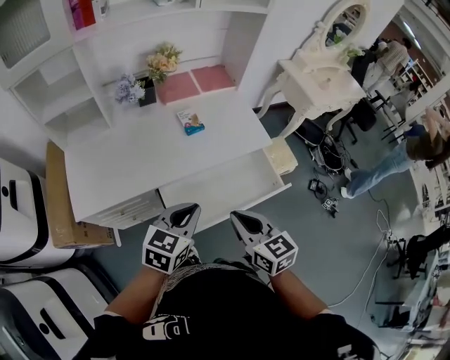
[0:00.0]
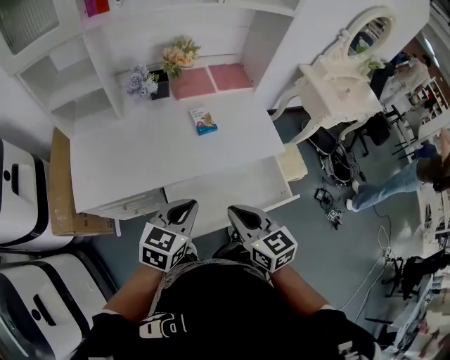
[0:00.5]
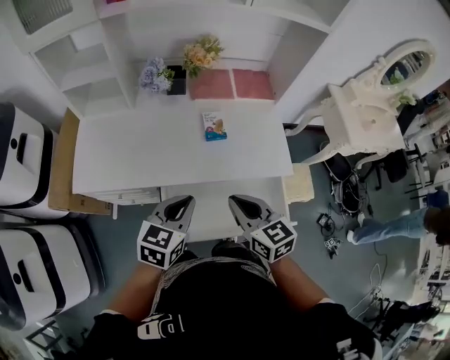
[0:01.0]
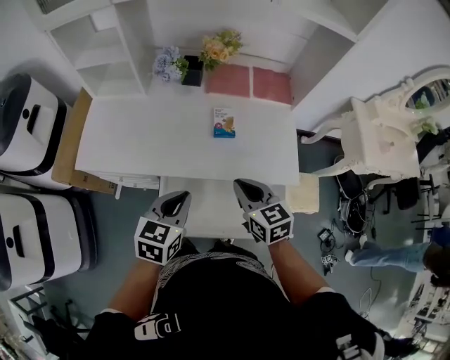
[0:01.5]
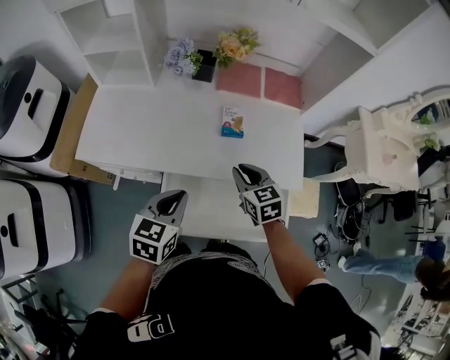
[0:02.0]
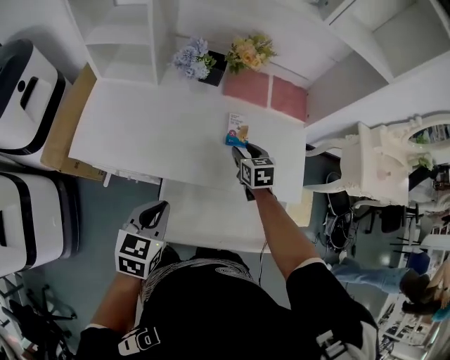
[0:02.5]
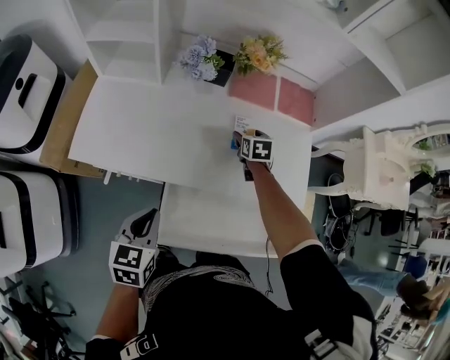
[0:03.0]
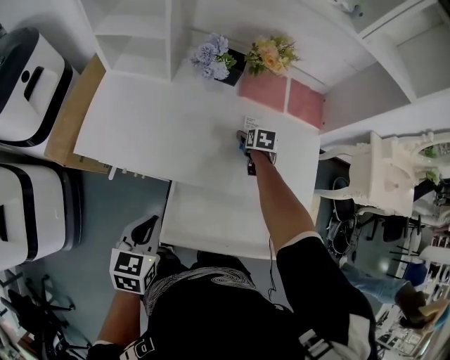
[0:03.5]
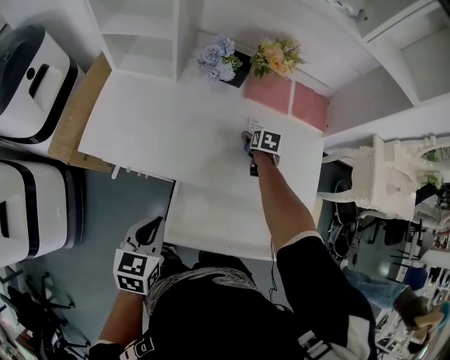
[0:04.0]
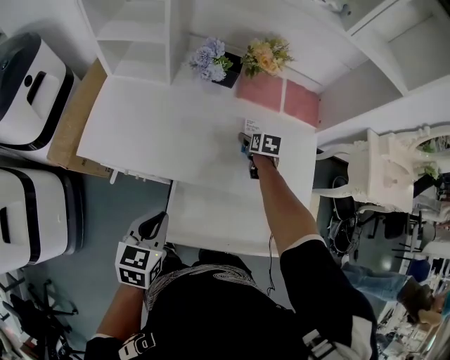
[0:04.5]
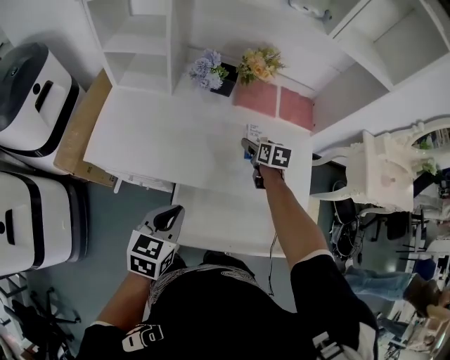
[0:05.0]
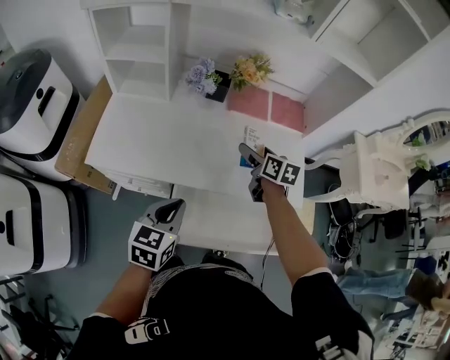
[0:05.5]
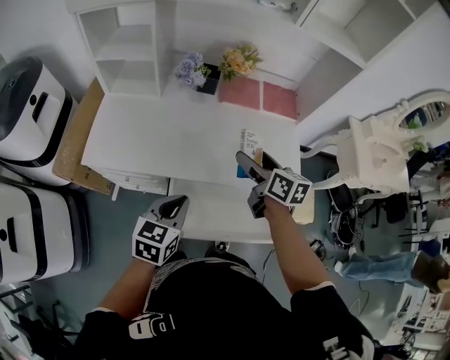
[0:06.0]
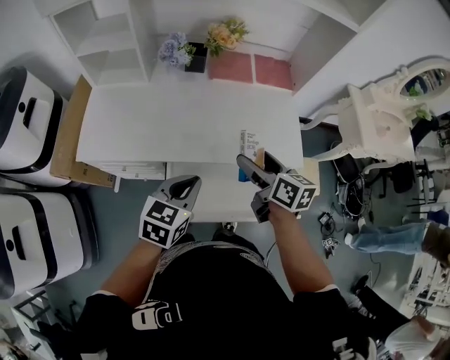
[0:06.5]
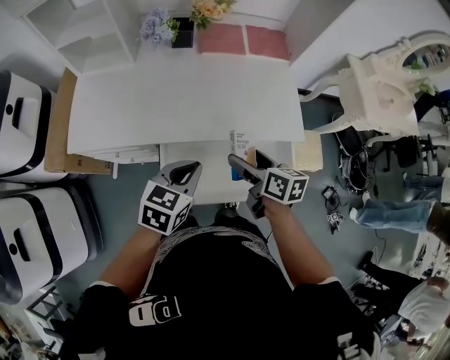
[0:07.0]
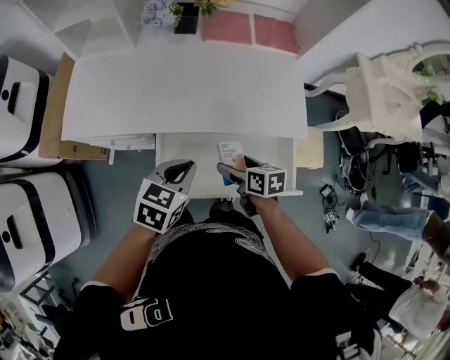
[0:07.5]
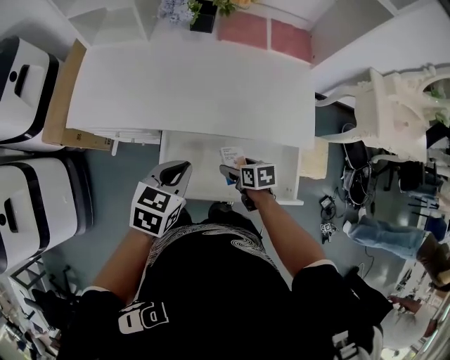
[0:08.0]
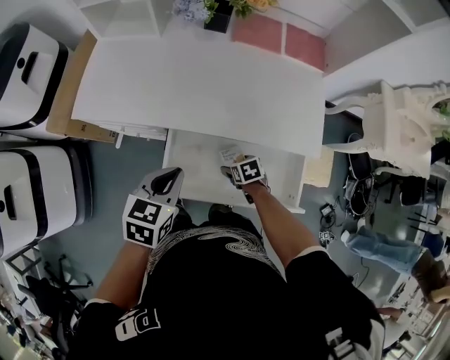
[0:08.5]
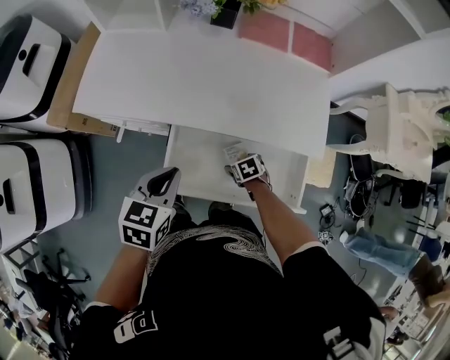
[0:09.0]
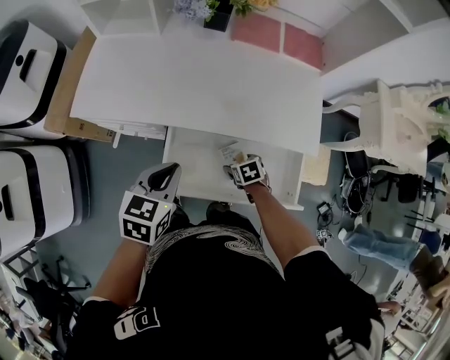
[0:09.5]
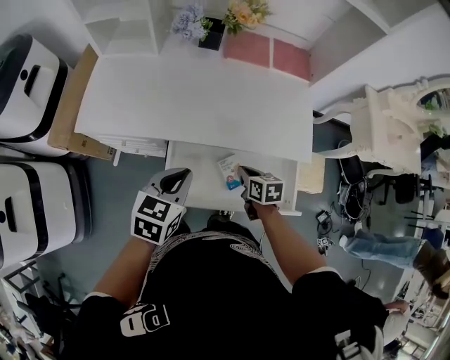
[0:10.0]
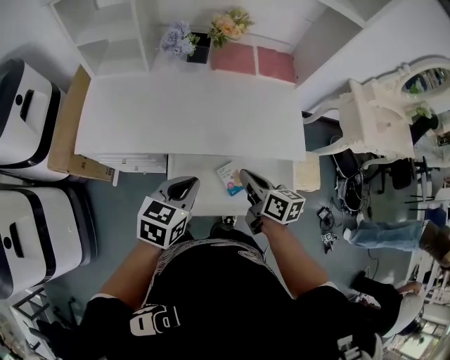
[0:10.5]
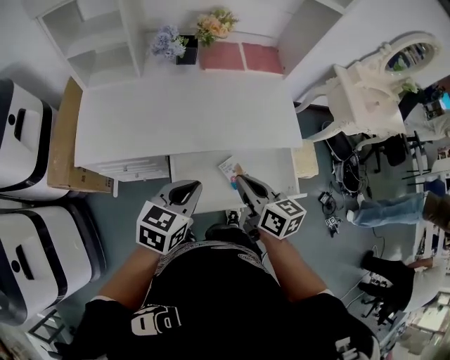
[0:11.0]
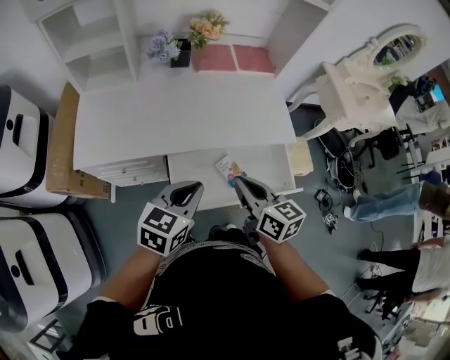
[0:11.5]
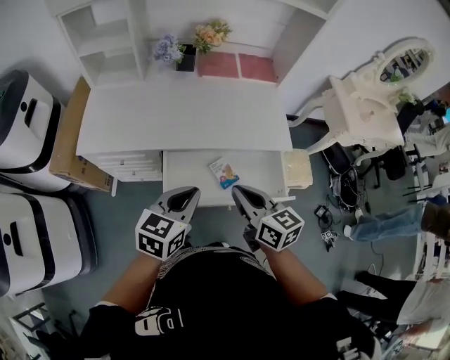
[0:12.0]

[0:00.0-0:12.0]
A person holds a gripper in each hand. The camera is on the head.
0:00.0 to 0:02.0: The right gripper ends up about 25 cm from where it was, and turns by about 30 degrees, while the left gripper changes place by roughly 10 cm, and rotates about 40 degrees.
0:02.0 to 0:04.0: The right gripper goes roughly 30 cm forward and downward, rotates roughly 30 degrees, and opens, while the left gripper heads to the left, covering some 10 cm.
0:04.0 to 0:06.0: The left gripper goes some 10 cm to the right and upward. The right gripper moves upward and backward, some 30 cm, and angles its fingers upward, by about 40 degrees.
0:06.0 to 0:08.0: The right gripper goes some 30 cm downward and backward, and tips its fingers downward by some 30 degrees, while the left gripper heads downward, covering about 5 cm.
0:08.0 to 0:10.0: The right gripper moves approximately 10 cm downward and comes back, and closes its fingers.
0:10.0 to 0:12.0: The right gripper travels upward and backward by about 25 cm, and swivels approximately 30 degrees. Meanwhile the left gripper travels backward and upward by some 10 cm.

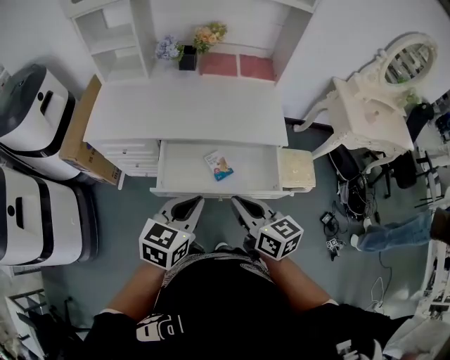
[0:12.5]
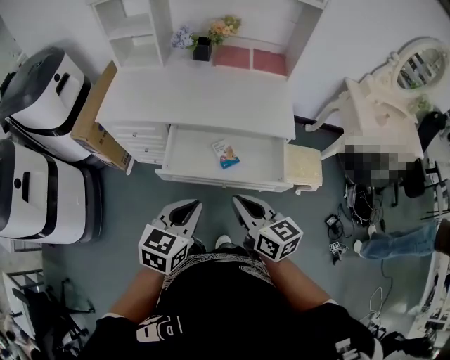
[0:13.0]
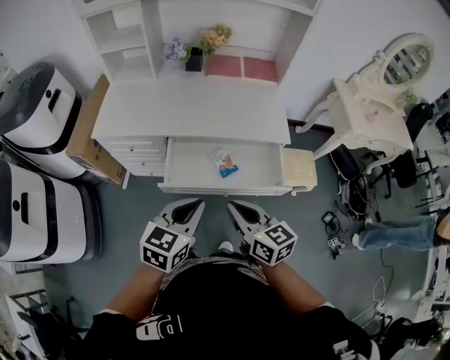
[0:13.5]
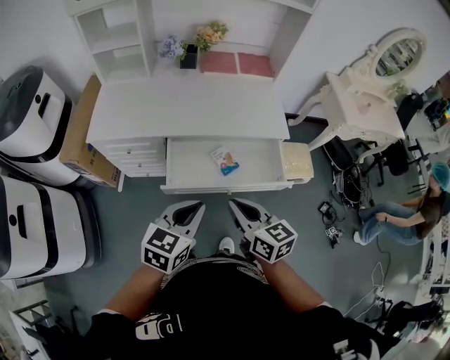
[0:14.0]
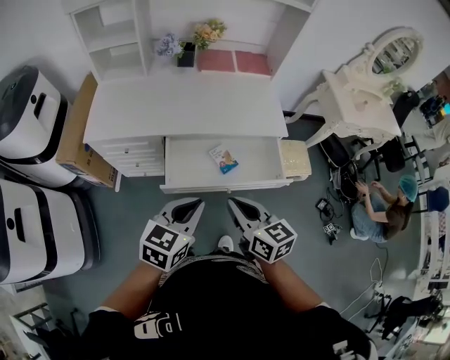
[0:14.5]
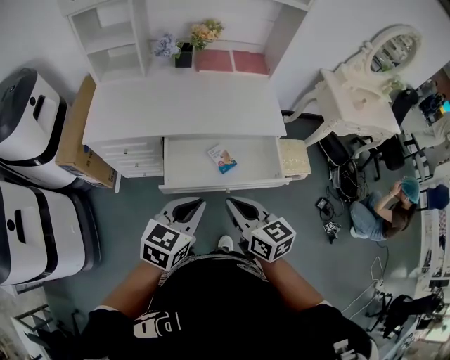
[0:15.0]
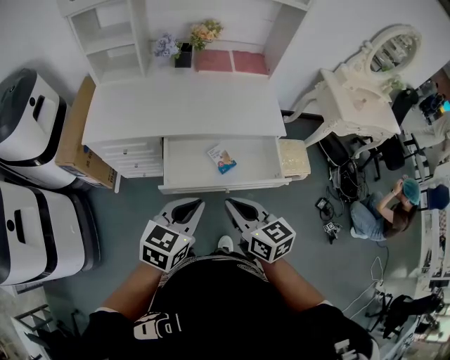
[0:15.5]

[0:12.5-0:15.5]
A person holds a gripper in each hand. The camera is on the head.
0:12.5 to 0:14.0: Both grippers move to the left, some 5 cm.
0:14.0 to 0:15.5: Both grippers stay put.

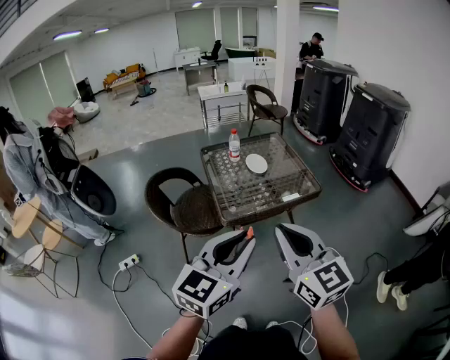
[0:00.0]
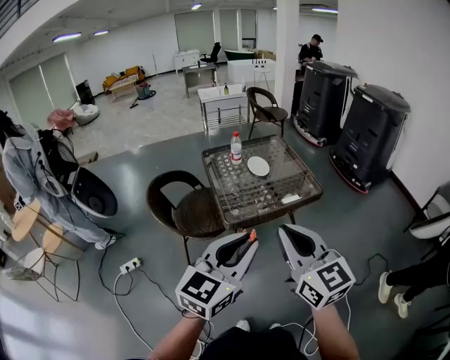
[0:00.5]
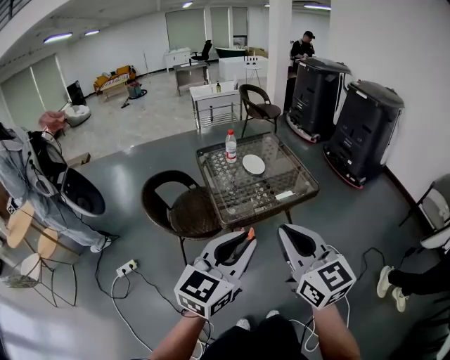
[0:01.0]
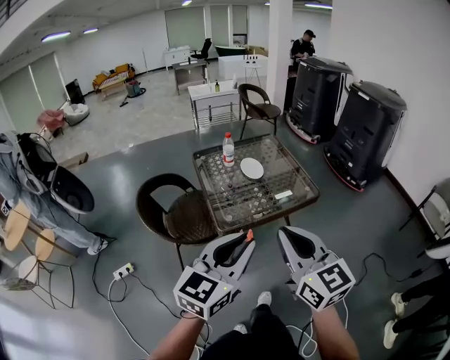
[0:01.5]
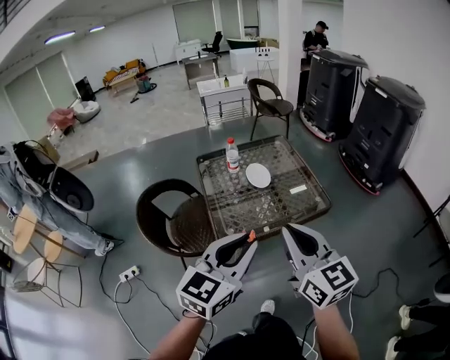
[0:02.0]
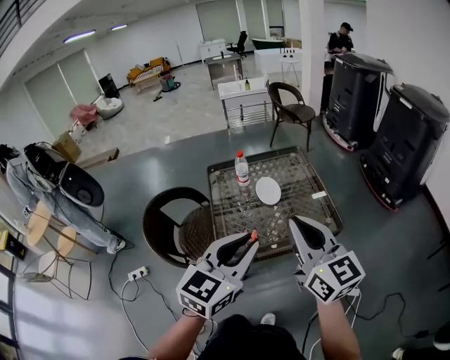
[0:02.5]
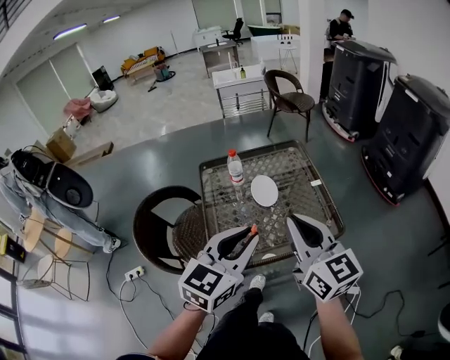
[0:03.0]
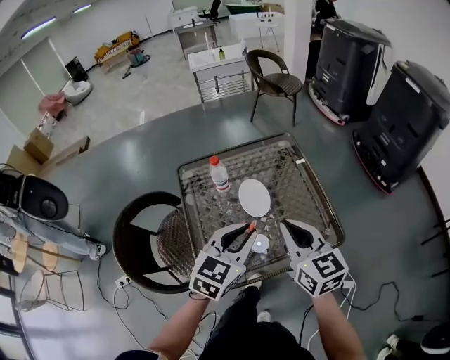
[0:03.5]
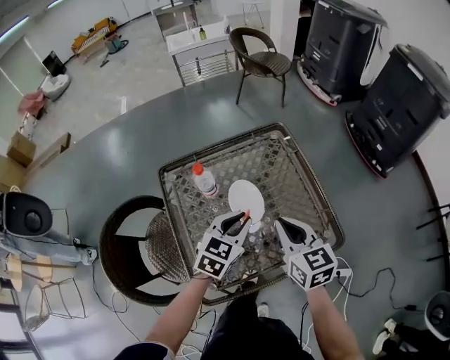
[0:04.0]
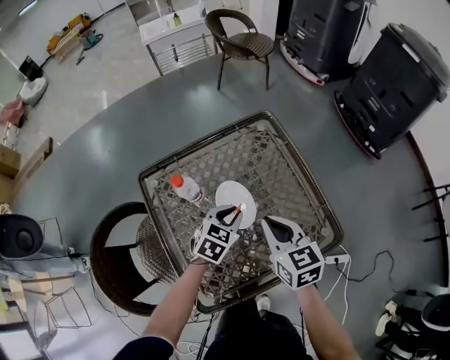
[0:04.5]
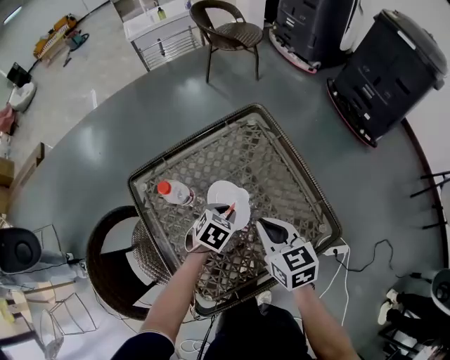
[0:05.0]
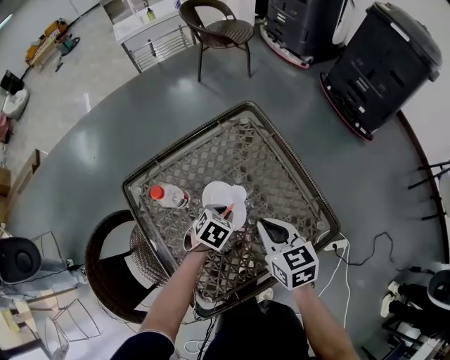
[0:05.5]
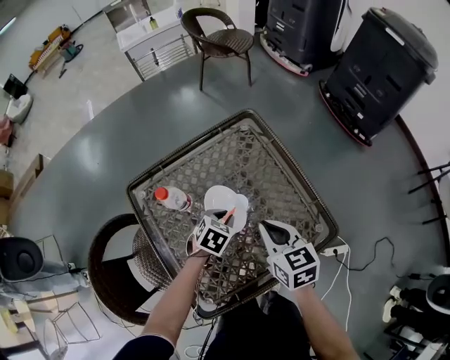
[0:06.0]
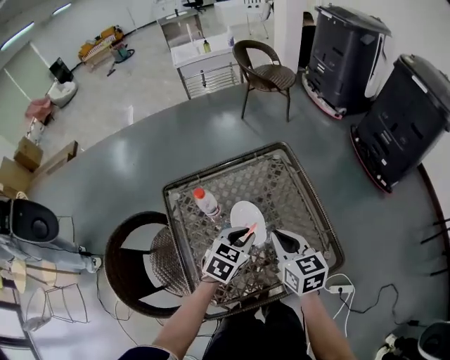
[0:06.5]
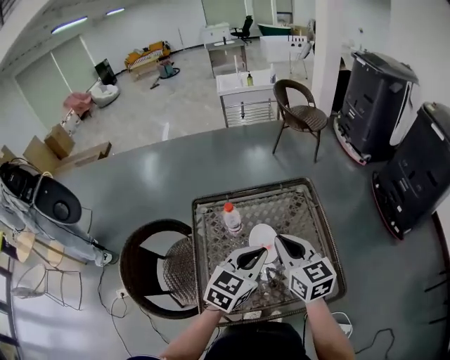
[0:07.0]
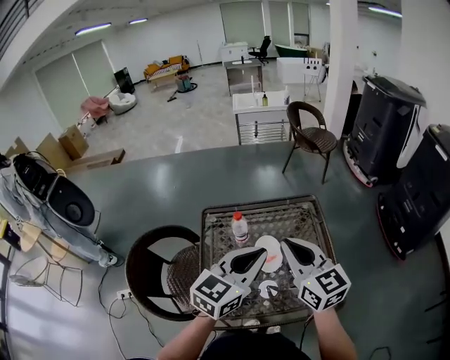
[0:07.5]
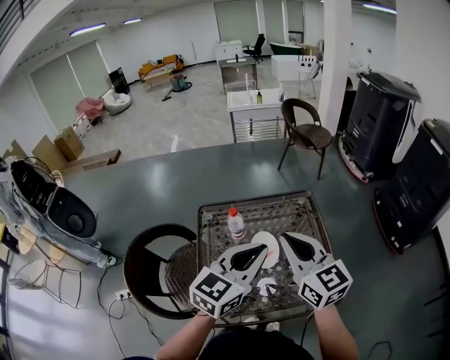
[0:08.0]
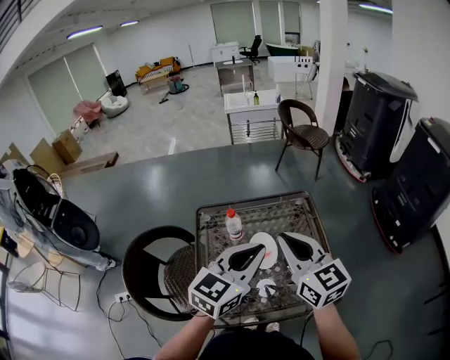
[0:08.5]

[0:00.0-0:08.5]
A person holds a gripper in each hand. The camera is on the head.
0:00.0 to 0:02.0: The grippers both shift forward by roughly 15 cm.
0:02.0 to 0:04.0: Both grippers move forward and downward, approximately 50 cm. The right gripper changes its angle by roughly 20 degrees. The left gripper changes its angle by approximately 20 degrees.
0:04.0 to 0:06.5: The right gripper moves about 10 cm downward and comes back; the left gripper reaches roughly 20 cm downward, then returns.
0:06.5 to 0:08.5: The two grippers go roughly 25 cm upward. The left gripper points its fingers about 30 degrees further upward. The right gripper changes its angle by some 30 degrees.

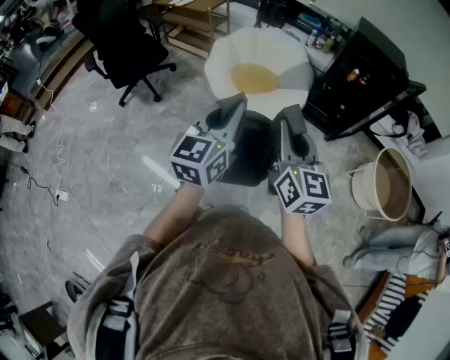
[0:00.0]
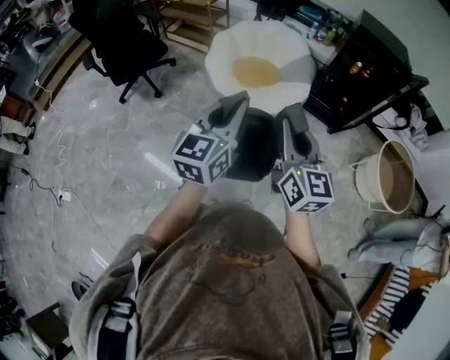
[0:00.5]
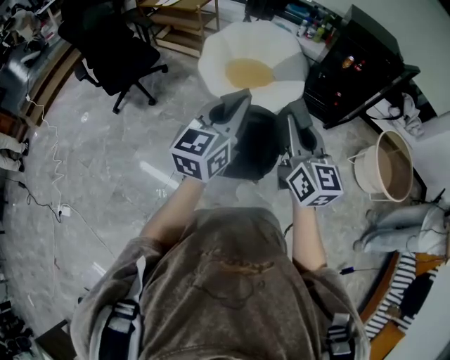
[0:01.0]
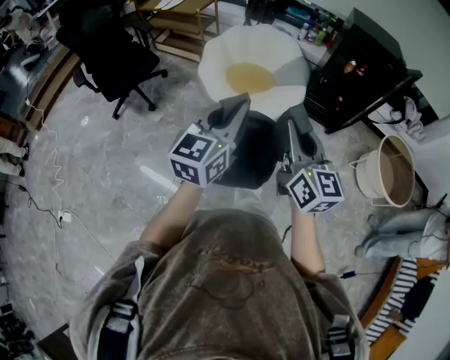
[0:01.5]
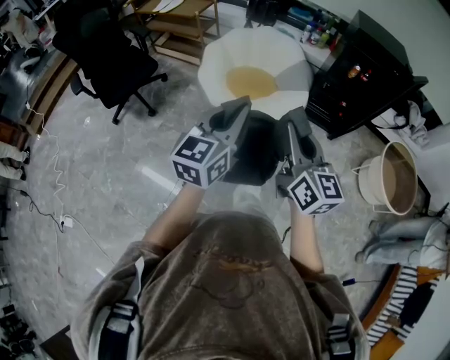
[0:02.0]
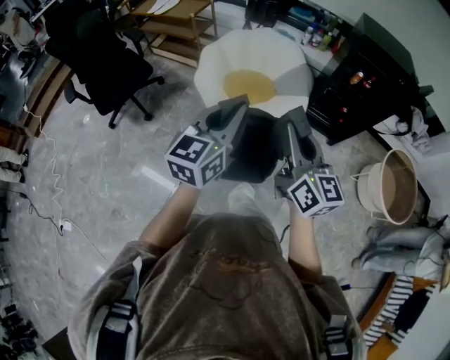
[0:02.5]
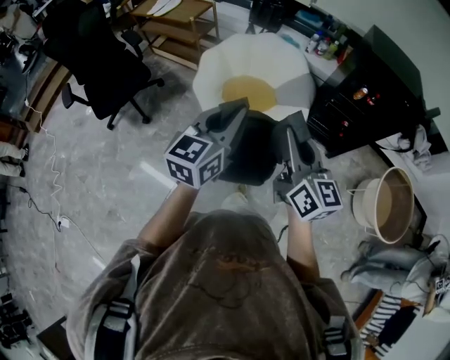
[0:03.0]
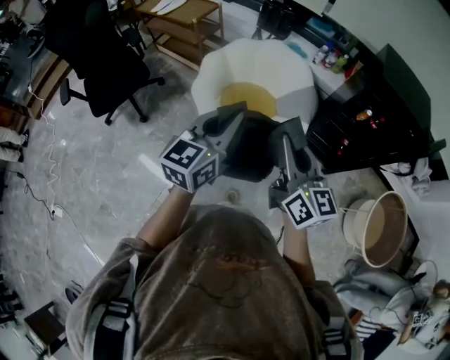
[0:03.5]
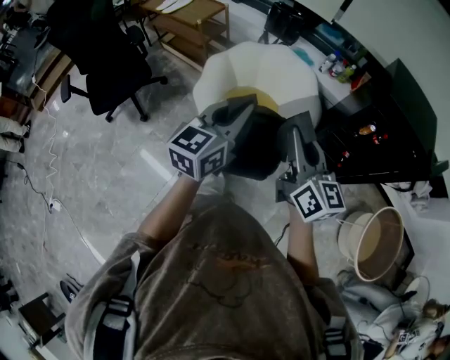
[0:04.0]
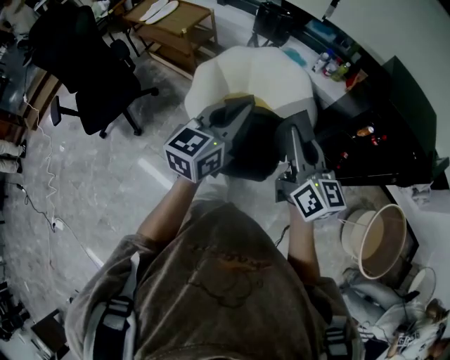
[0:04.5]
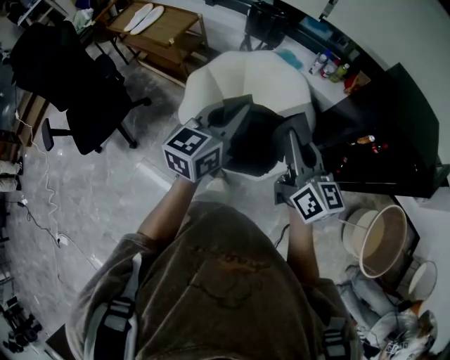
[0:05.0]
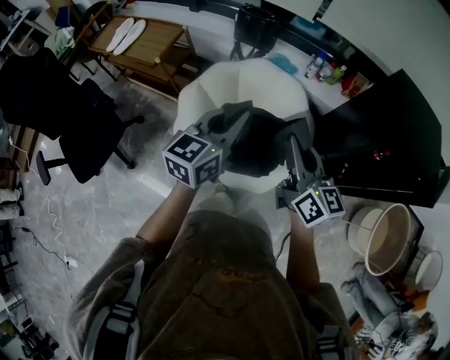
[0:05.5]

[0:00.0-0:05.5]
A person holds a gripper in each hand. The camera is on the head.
0:00.0 to 0:02.0: The grippers both shift forward by approximately 10 cm.
0:02.0 to 0:03.5: Both grippers travel together forward, some 25 cm.
0:03.5 to 0:05.5: Both grippers travel together forward, some 35 cm.
